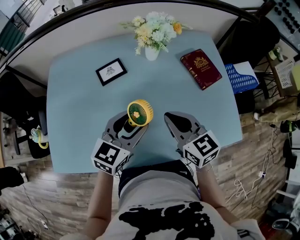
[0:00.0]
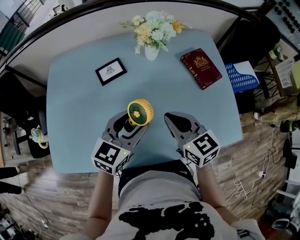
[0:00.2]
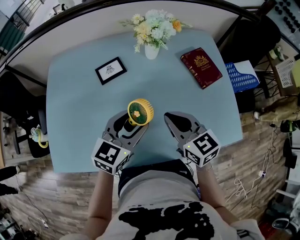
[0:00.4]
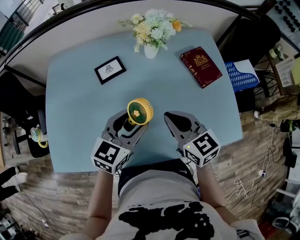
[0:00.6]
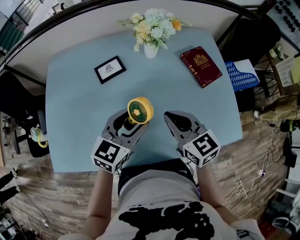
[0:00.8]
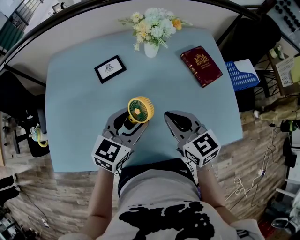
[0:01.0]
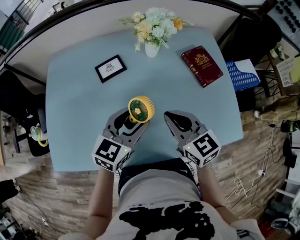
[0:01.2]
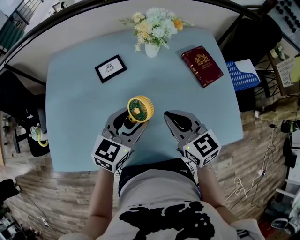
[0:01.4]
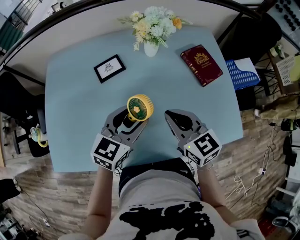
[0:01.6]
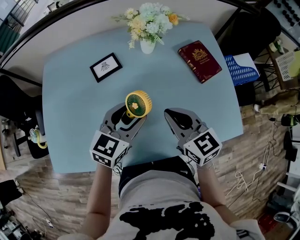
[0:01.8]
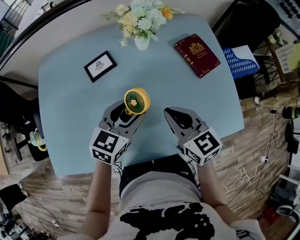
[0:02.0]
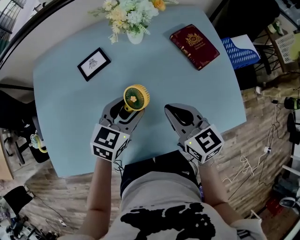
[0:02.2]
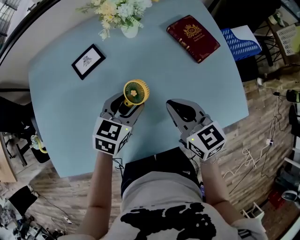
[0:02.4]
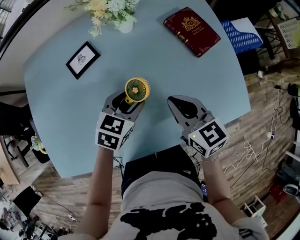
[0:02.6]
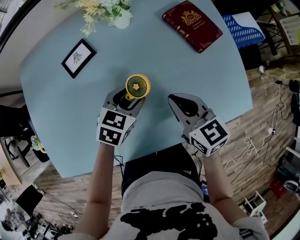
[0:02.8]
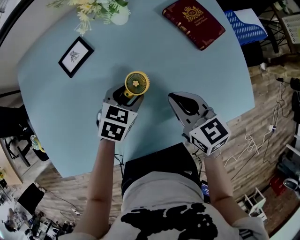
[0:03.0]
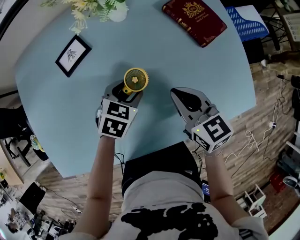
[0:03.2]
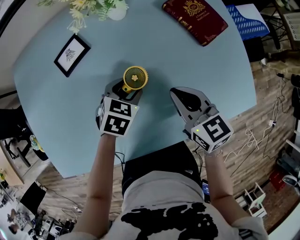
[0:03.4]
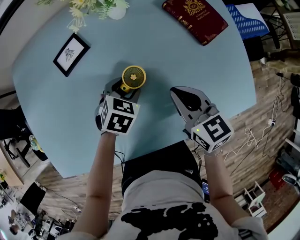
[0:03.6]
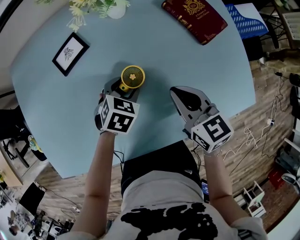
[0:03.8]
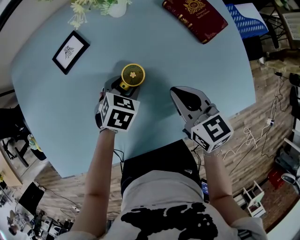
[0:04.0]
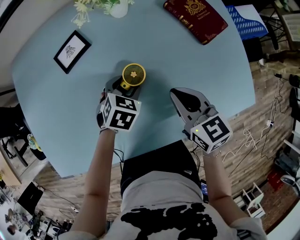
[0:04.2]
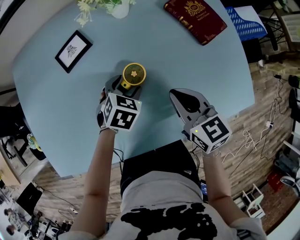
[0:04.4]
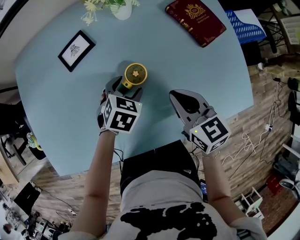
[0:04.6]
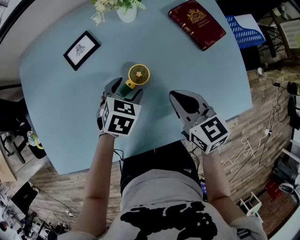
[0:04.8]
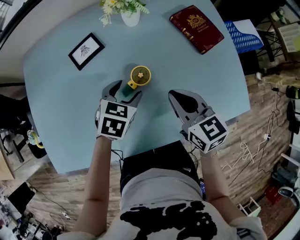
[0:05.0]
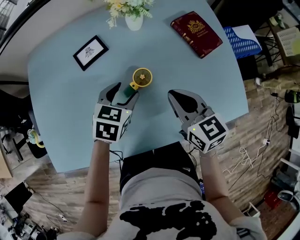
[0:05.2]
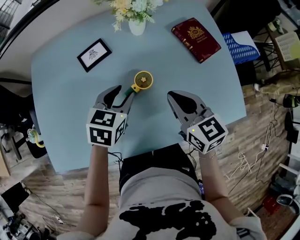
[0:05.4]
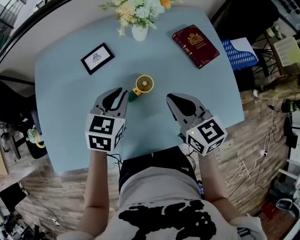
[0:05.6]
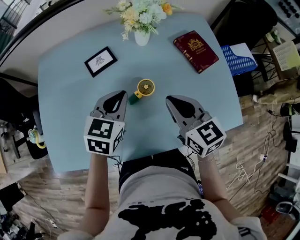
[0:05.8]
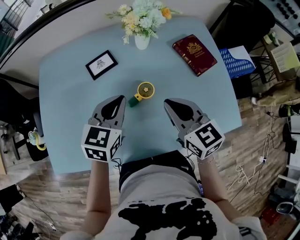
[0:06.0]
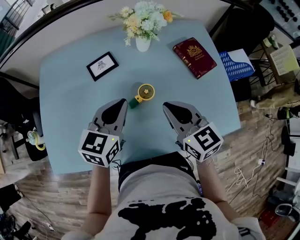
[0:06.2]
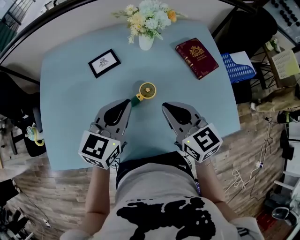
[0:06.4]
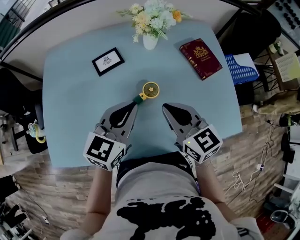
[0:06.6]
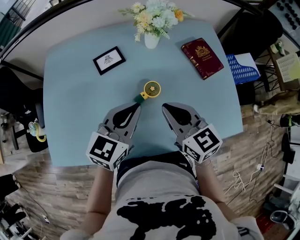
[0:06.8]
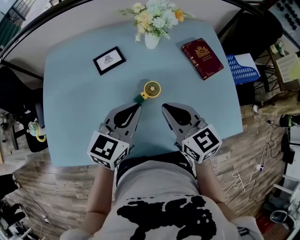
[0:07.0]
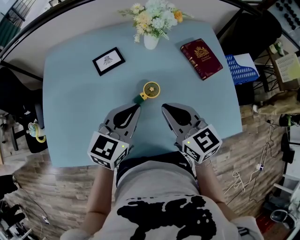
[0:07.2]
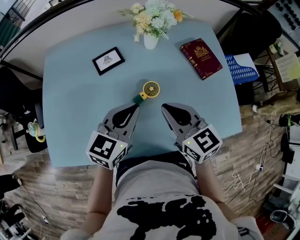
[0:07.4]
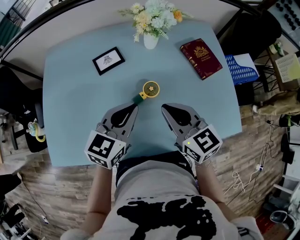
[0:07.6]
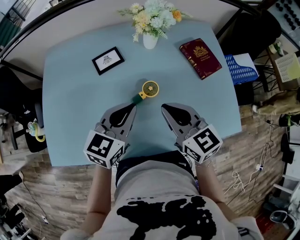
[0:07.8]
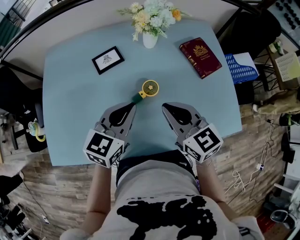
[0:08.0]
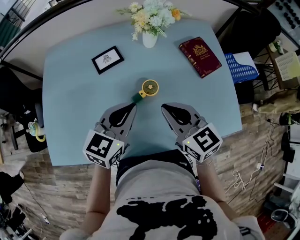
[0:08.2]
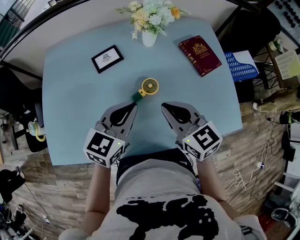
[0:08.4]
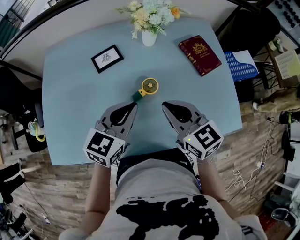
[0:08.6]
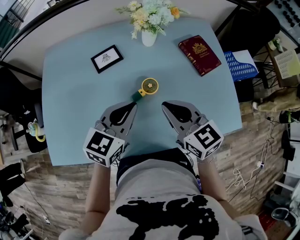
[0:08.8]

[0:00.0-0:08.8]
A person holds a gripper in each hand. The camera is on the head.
0:00.0 to 0:01.4: Both grippers stay about where they are.
0:01.4 to 0:03.0: The right gripper moves downward and to the right, approximately 10 cm; the left gripper travels downward by roughly 15 cm, and points its fingers about 30 degrees further downward.
0:03.0 to 0:04.4: The grippers make only small movements.
0:04.4 to 0:05.8: The left gripper travels upward by about 20 cm, turns by some 30 degrees, and closes up, while the right gripper is displaced upward by some 10 cm.
0:05.8 to 0:07.4: The left gripper goes roughly 5 cm backward.
0:07.4 to 0:08.8: The two grippers keep their place.

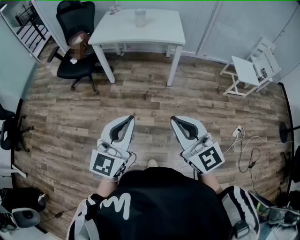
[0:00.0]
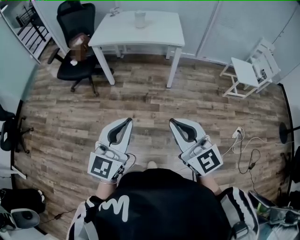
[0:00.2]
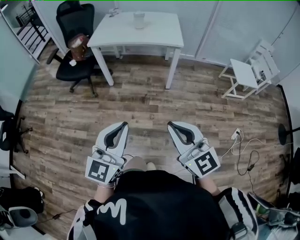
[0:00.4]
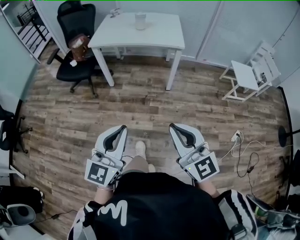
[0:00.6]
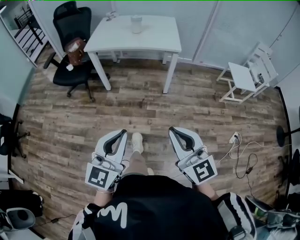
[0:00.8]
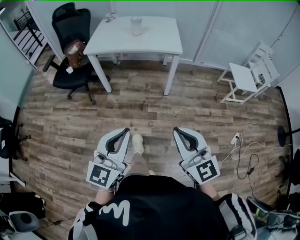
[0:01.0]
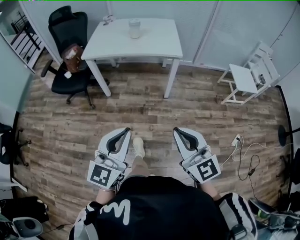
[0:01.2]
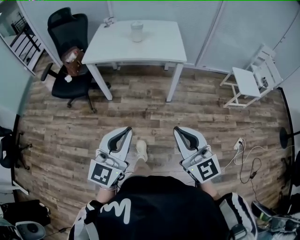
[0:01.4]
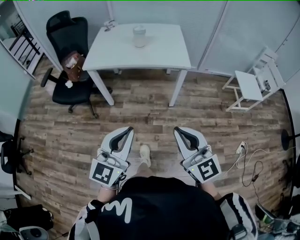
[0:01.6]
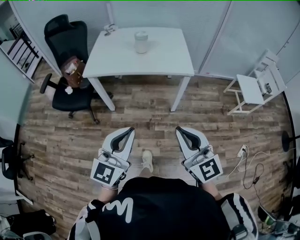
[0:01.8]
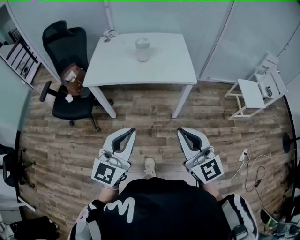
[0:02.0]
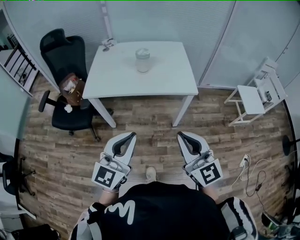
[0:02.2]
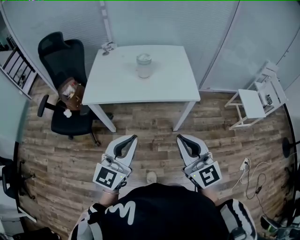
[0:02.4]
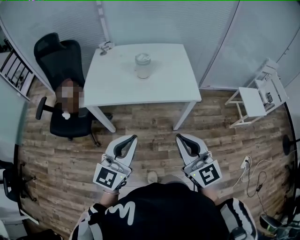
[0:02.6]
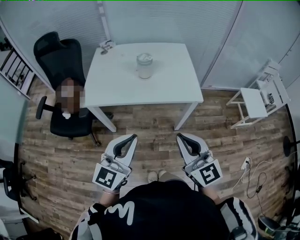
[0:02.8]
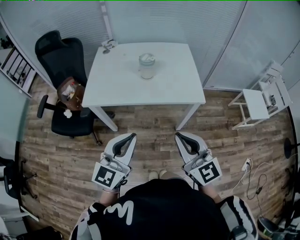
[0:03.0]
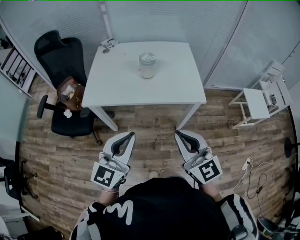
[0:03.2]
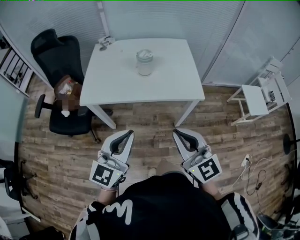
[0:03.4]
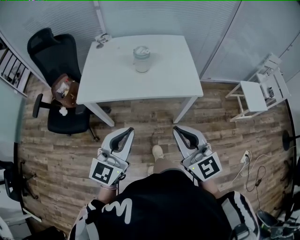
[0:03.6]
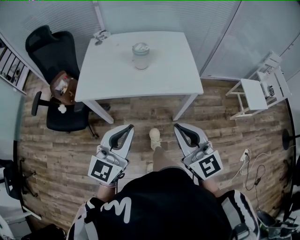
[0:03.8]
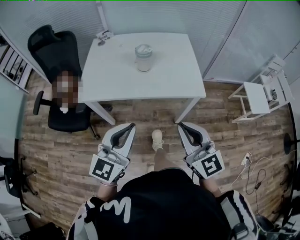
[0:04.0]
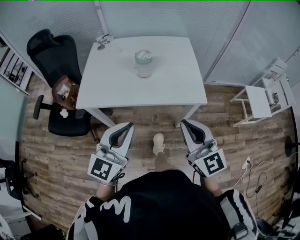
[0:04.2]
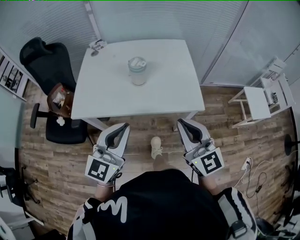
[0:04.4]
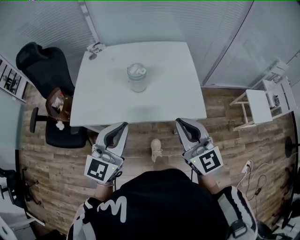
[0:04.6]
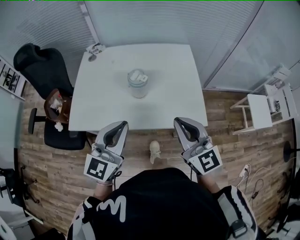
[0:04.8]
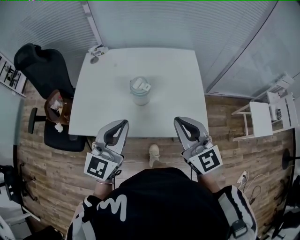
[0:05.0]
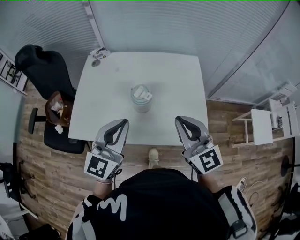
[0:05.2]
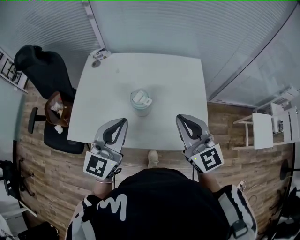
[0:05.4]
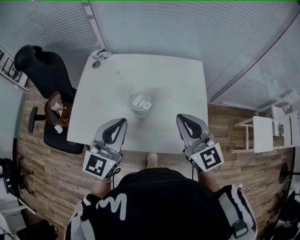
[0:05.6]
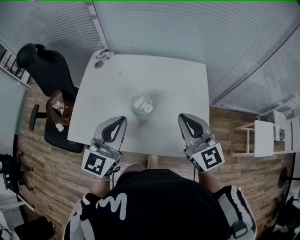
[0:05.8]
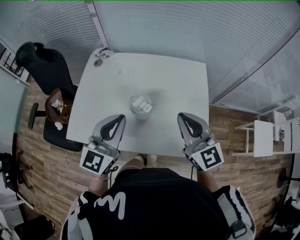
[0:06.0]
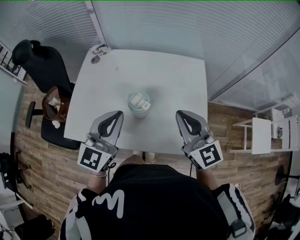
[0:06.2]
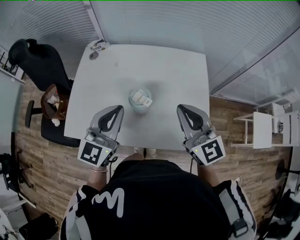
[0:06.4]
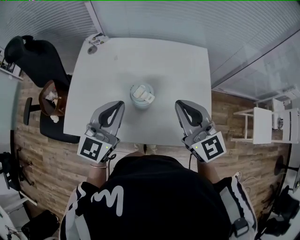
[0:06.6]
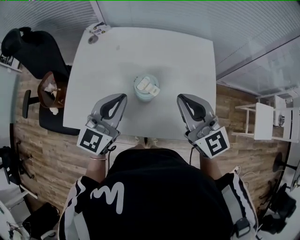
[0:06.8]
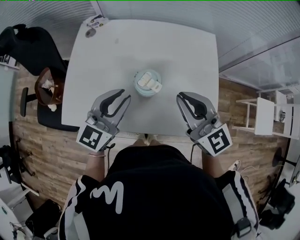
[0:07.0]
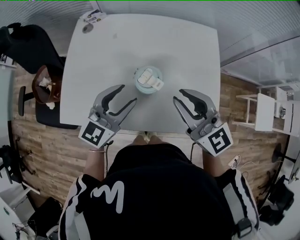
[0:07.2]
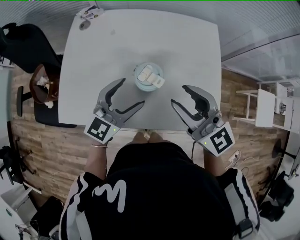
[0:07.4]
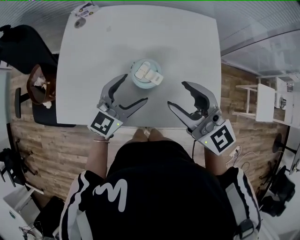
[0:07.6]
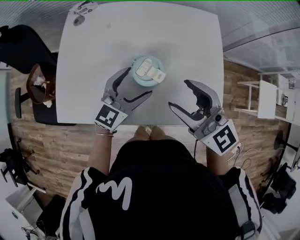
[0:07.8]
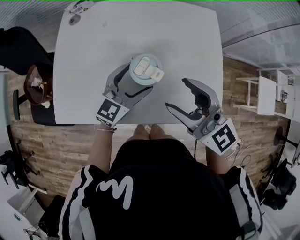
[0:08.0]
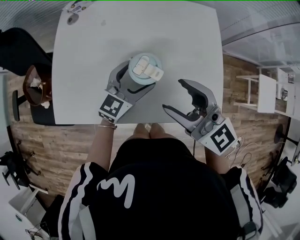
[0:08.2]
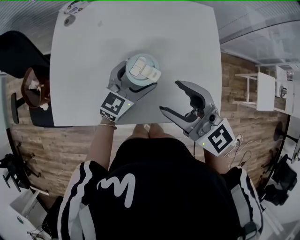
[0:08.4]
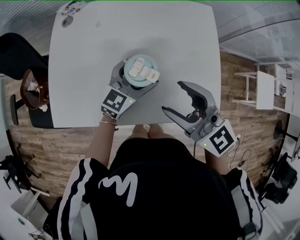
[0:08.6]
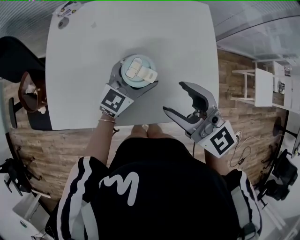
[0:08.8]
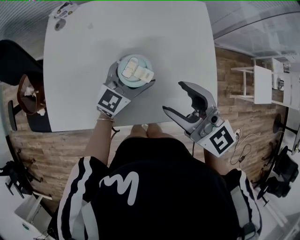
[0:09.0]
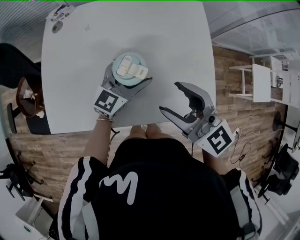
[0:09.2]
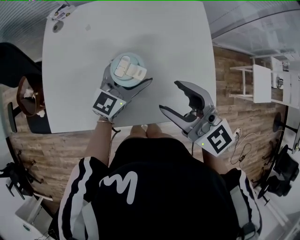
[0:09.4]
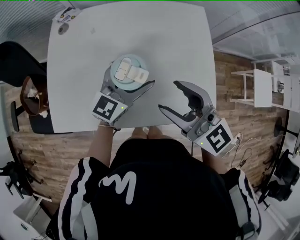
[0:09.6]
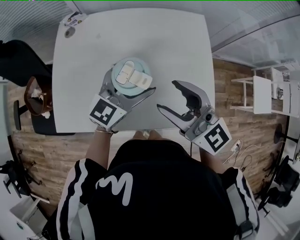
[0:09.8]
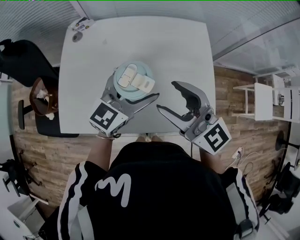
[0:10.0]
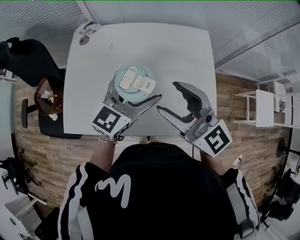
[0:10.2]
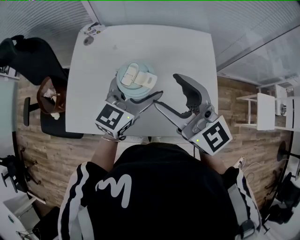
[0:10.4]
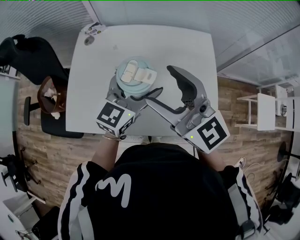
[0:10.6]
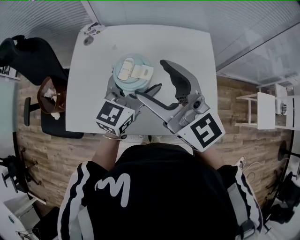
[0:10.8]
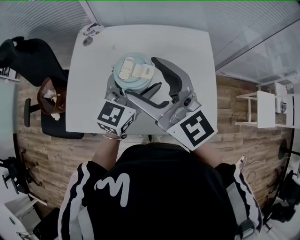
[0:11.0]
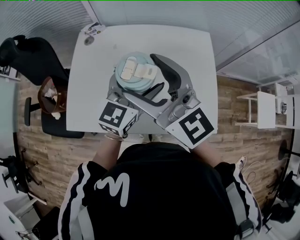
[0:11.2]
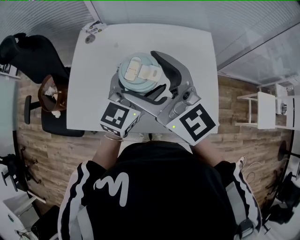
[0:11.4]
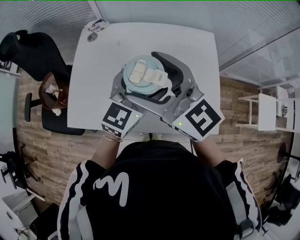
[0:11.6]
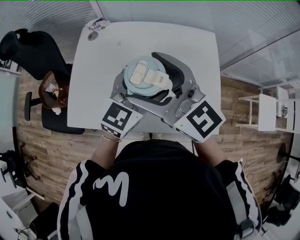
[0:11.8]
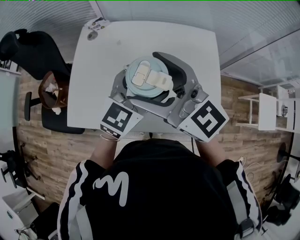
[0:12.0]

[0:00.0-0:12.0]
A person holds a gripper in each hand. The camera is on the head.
0:00.0 to 0:01.6: Both grippers travel together forward, approximately 20 cm.
0:01.6 to 0:03.0: The two grippers go approximately 25 cm forward.
0:03.0 to 0:04.4: The grippers both shift forward by some 15 cm.
0:04.4 to 0:06.0: Both grippers travel together forward, approximately 25 cm.
0:06.0 to 0:07.6: The left gripper goes about 15 cm downward, swivels roughly 20 degrees, and opens its fingers. Meanwhile the right gripper moves to the left, about 5 cm, and opens.
0:07.6 to 0:09.0: The left gripper heads to the right and forward, covering some 10 cm.
0:09.0 to 0:10.4: The right gripper goes some 10 cm upward; the left gripper shifts some 15 cm upward.
0:10.4 to 0:12.0: The right gripper shifts some 5 cm to the left.

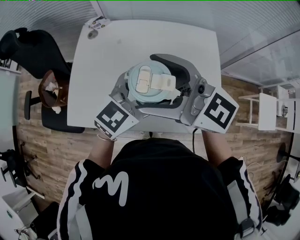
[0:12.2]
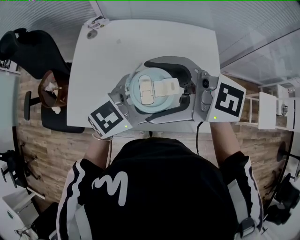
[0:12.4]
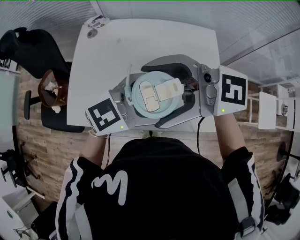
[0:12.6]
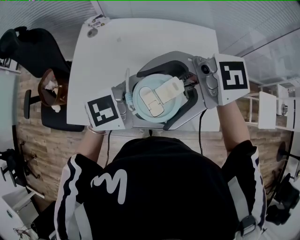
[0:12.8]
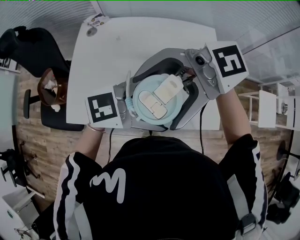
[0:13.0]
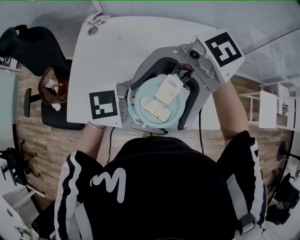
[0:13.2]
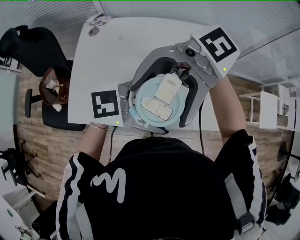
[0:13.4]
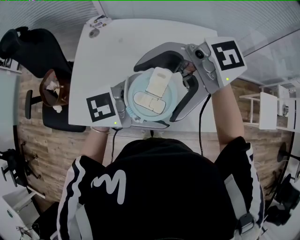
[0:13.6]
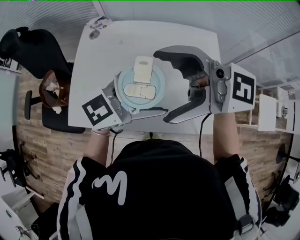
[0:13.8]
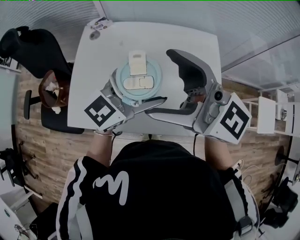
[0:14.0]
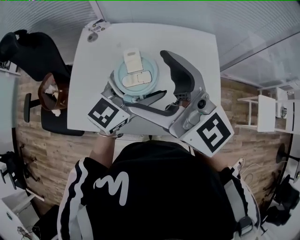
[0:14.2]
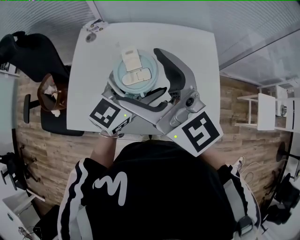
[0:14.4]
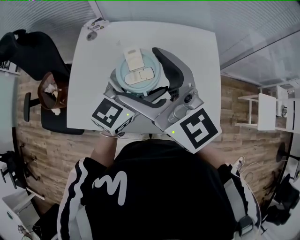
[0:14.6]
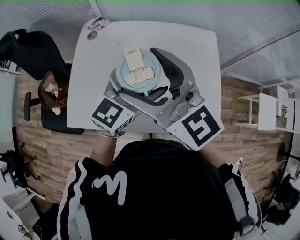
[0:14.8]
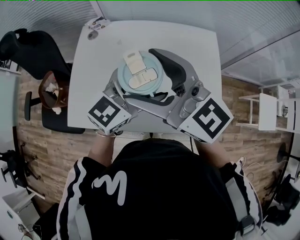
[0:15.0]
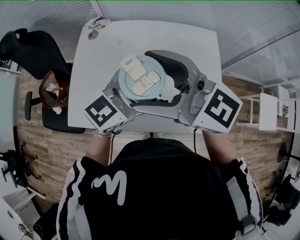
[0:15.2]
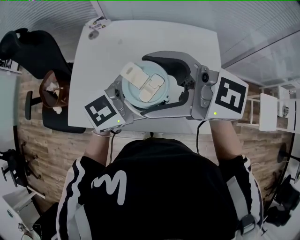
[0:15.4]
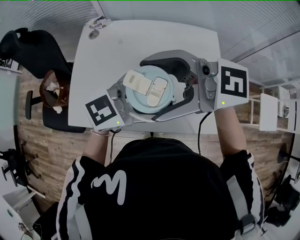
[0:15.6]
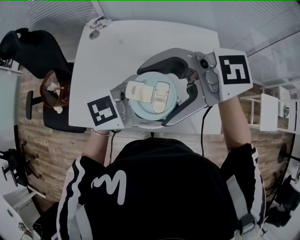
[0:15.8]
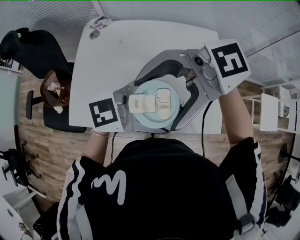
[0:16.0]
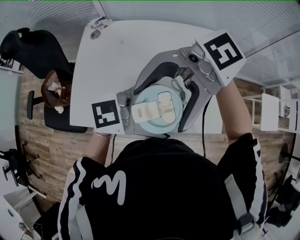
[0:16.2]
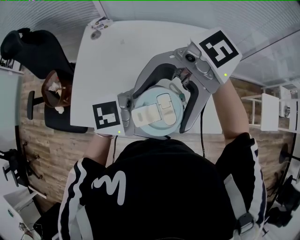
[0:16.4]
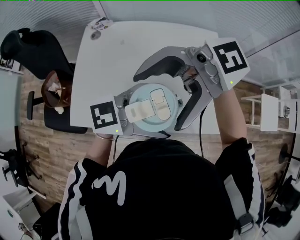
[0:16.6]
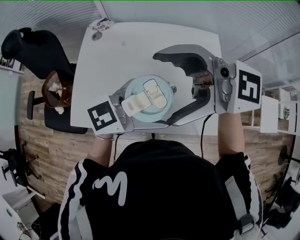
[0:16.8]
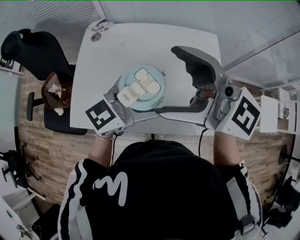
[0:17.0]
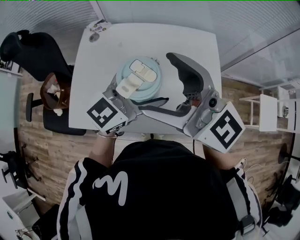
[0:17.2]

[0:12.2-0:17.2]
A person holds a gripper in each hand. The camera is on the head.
0:12.2 to 0:13.8: The right gripper swivels roughly 30 degrees.
0:15.6 to 0:17.2: The right gripper changes its angle by roughly 40 degrees.
